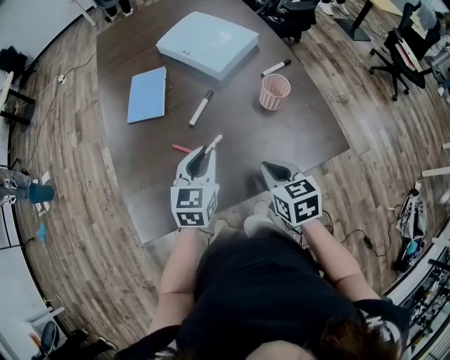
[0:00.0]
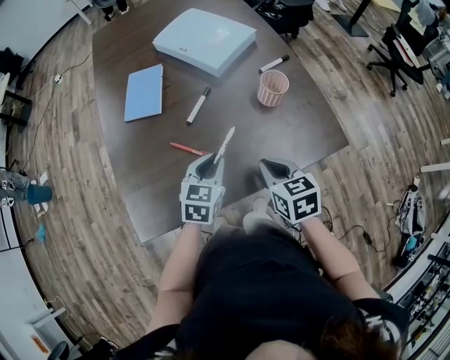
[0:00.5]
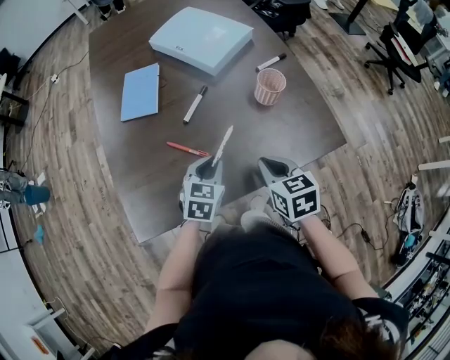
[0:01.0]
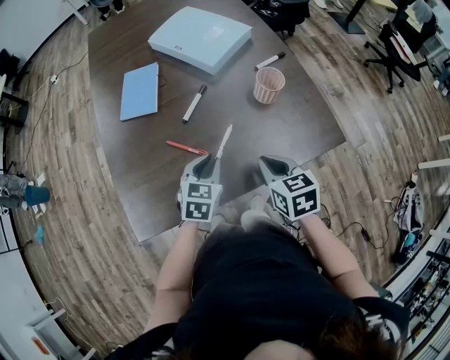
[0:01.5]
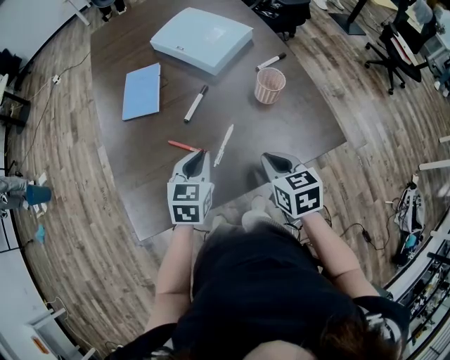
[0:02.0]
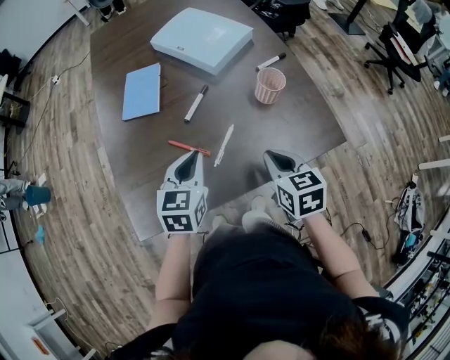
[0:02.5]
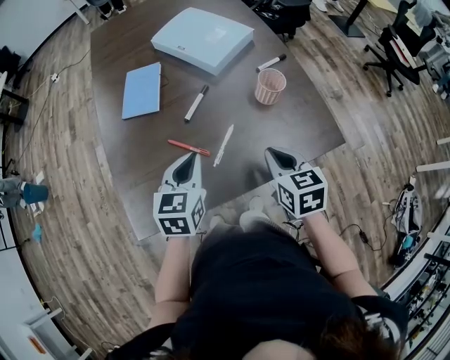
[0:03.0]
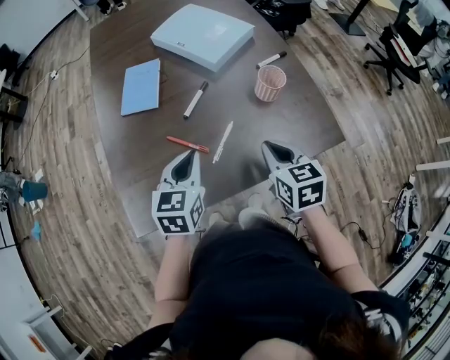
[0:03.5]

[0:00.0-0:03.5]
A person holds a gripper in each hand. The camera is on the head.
0:02.0 to 0:03.5: The left gripper moves roughly 5 cm.

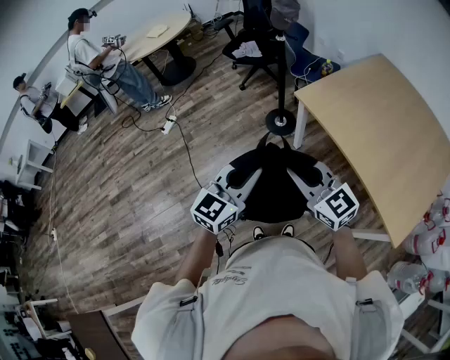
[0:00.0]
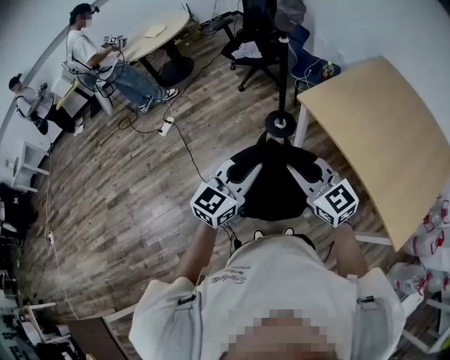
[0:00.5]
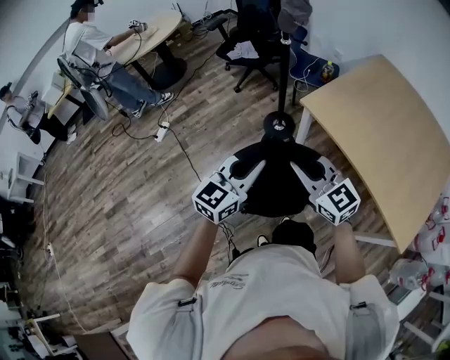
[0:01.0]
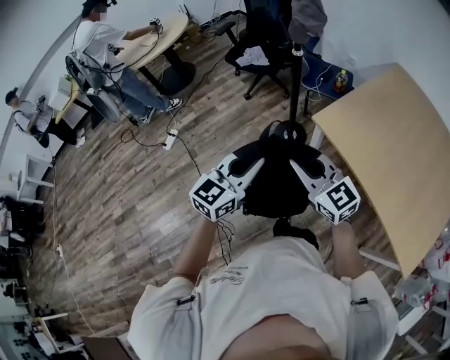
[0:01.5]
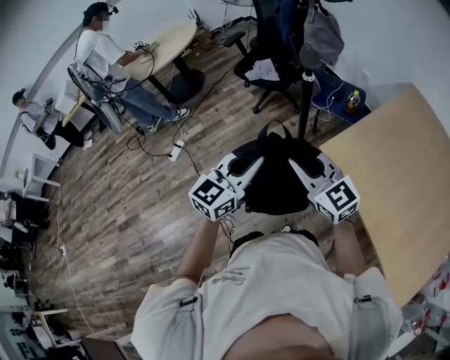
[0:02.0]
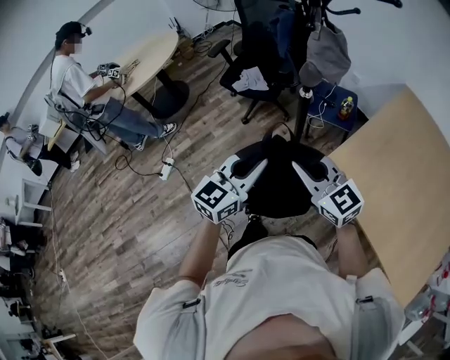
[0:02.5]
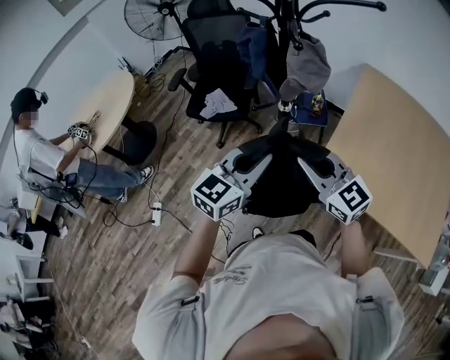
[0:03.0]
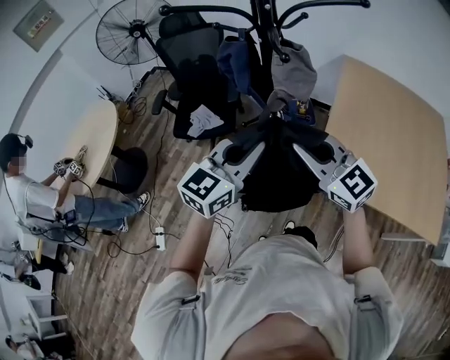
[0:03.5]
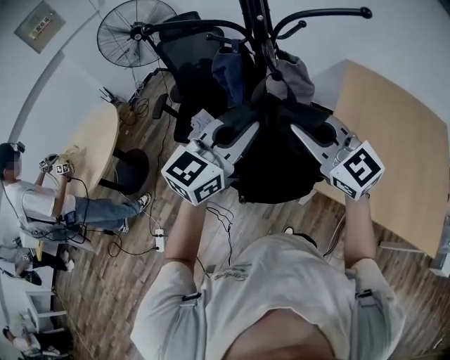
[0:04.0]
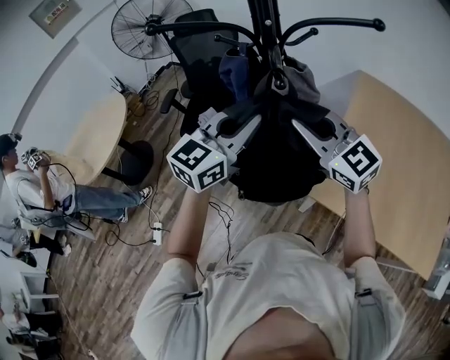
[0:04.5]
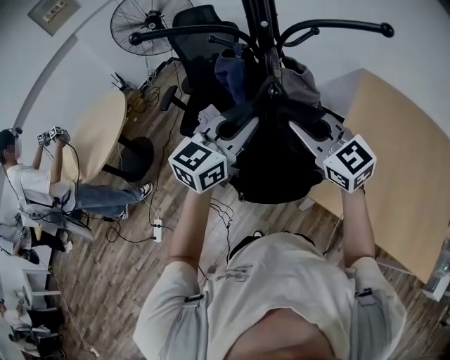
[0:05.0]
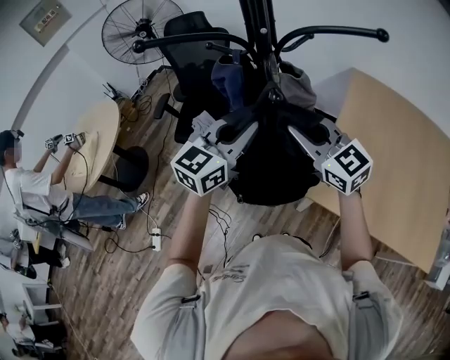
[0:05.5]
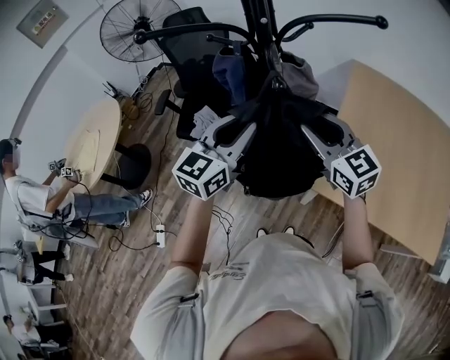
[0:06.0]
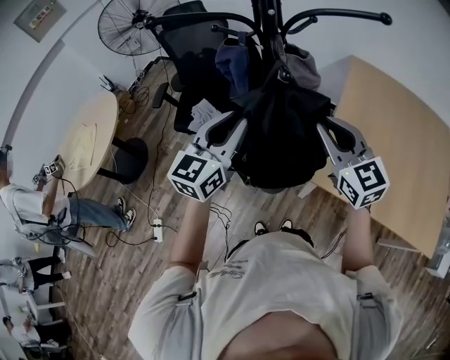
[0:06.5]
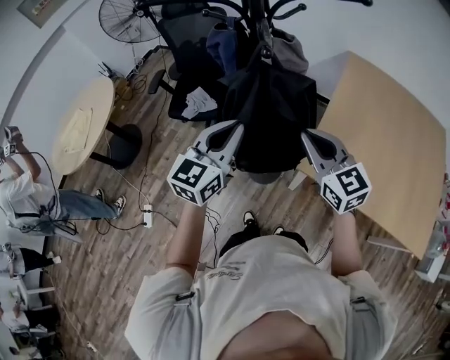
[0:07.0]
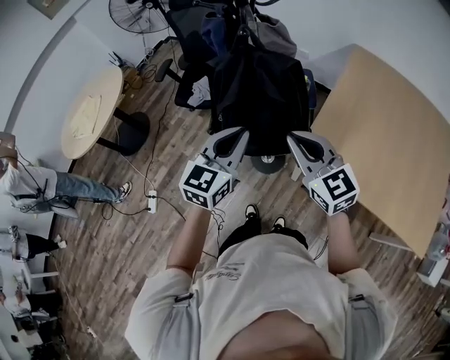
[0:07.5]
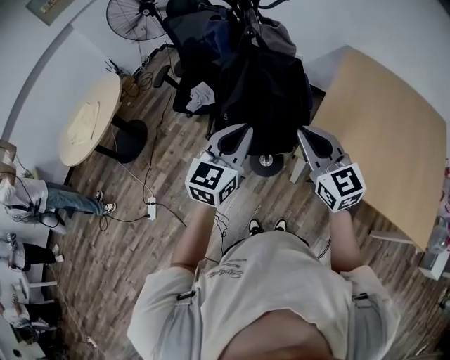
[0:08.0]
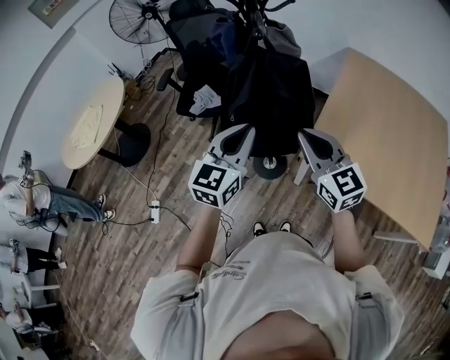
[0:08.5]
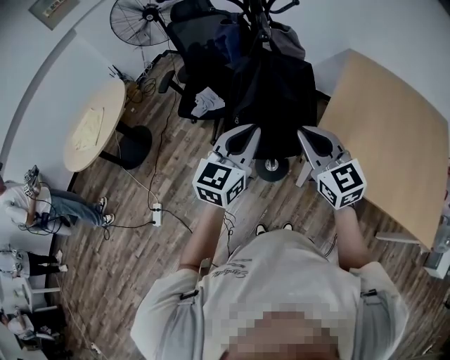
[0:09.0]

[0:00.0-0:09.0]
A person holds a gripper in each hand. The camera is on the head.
0:00.0 to 0:02.0: The grippers both shift forward by approximately 35 cm.
0:02.0 to 0:04.5: The left gripper changes place by approximately 35 cm, and rotates some 30 degrees. Meanwhile the right gripper moves roughly 30 cm, and changes its angle by approximately 30 degrees.
0:04.5 to 0:07.0: The left gripper shifts approximately 10 cm backward and downward; the right gripper goes approximately 10 cm downward, backward and to the right, swivels some 20 degrees, and opens and closes again.
0:07.0 to 0:09.0: The grippers both shift backward by some 5 cm.

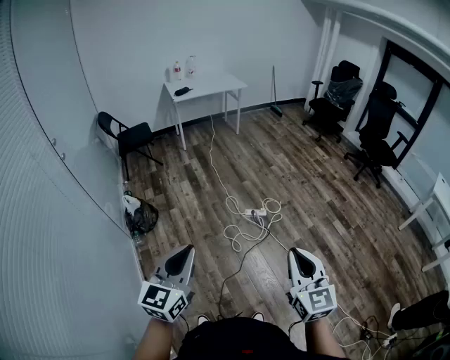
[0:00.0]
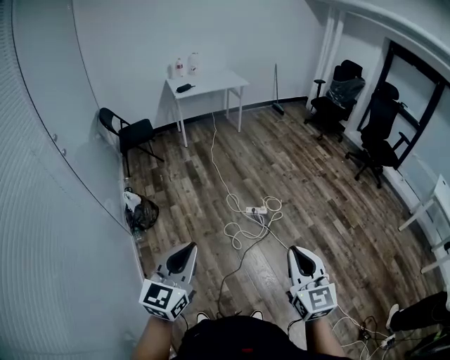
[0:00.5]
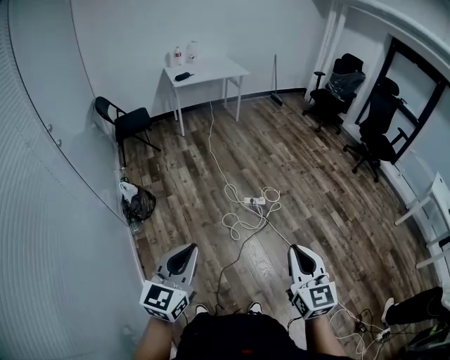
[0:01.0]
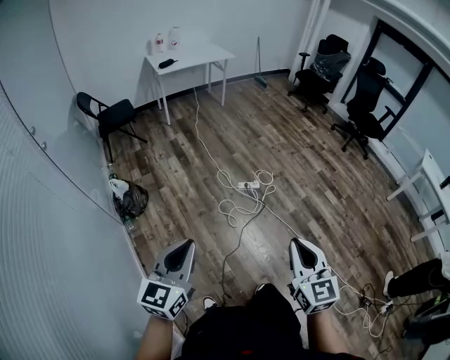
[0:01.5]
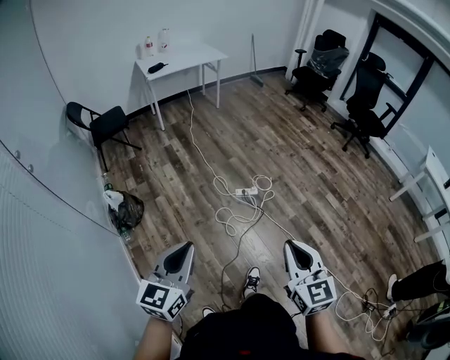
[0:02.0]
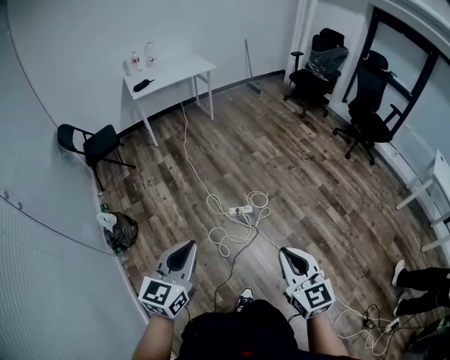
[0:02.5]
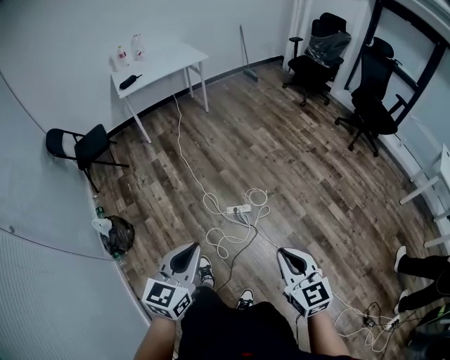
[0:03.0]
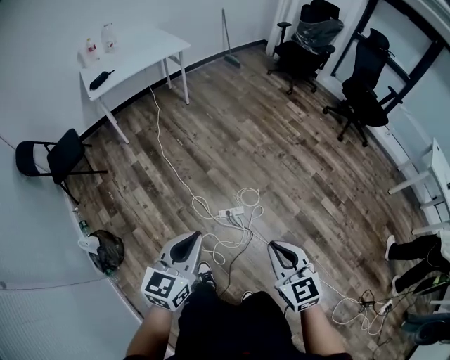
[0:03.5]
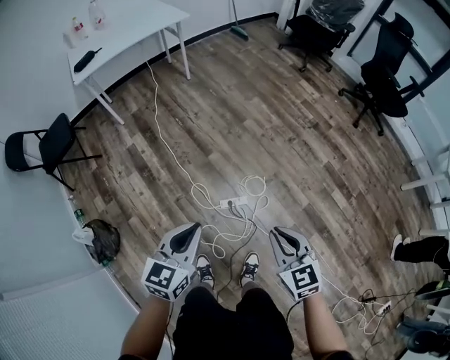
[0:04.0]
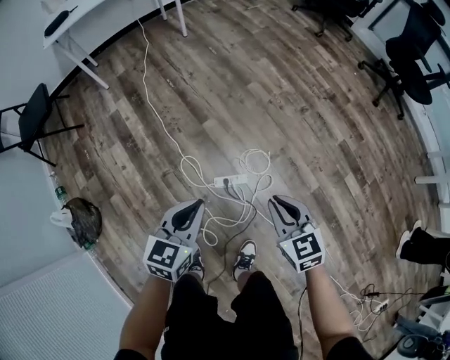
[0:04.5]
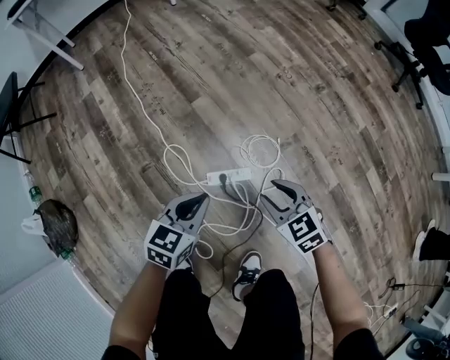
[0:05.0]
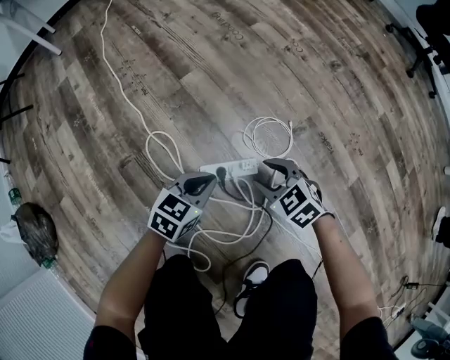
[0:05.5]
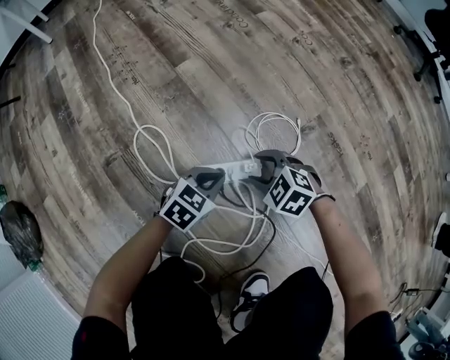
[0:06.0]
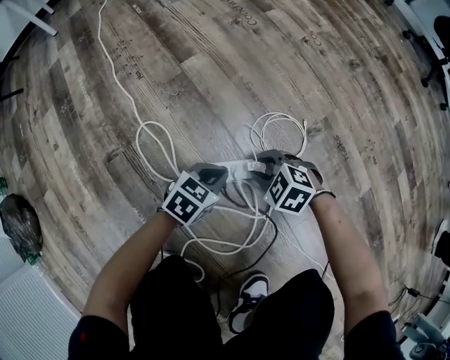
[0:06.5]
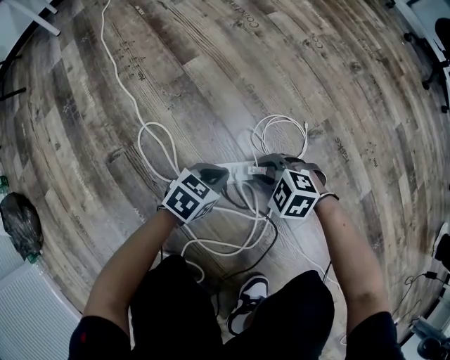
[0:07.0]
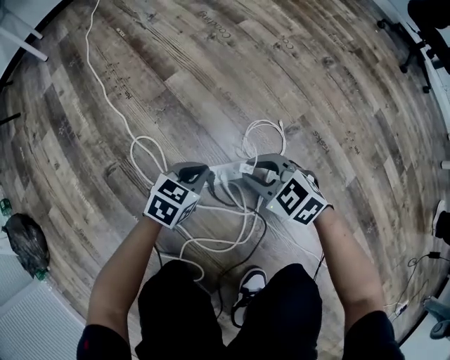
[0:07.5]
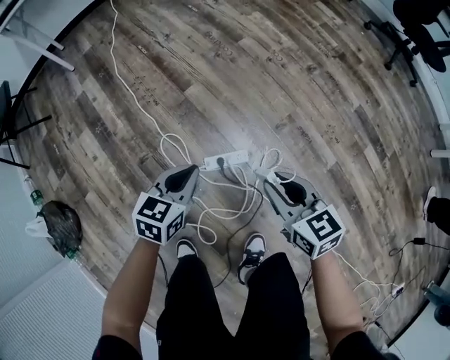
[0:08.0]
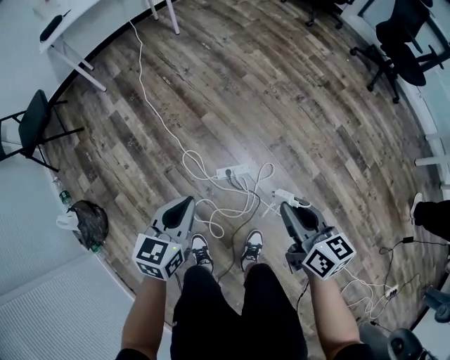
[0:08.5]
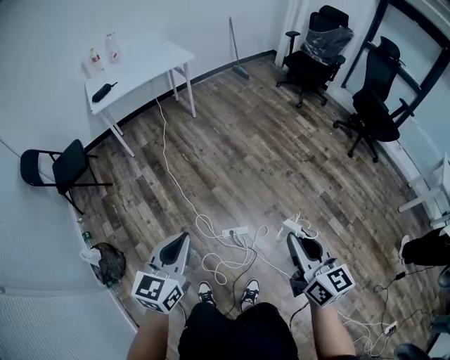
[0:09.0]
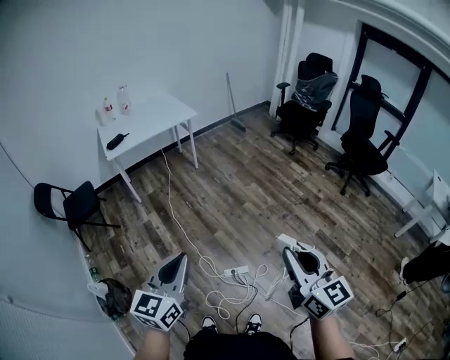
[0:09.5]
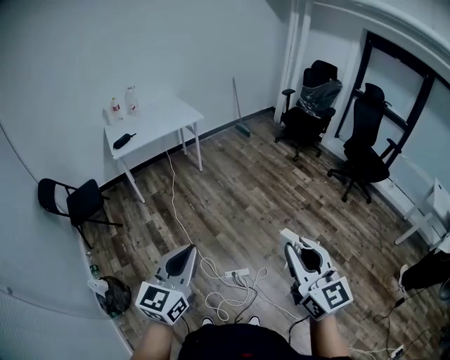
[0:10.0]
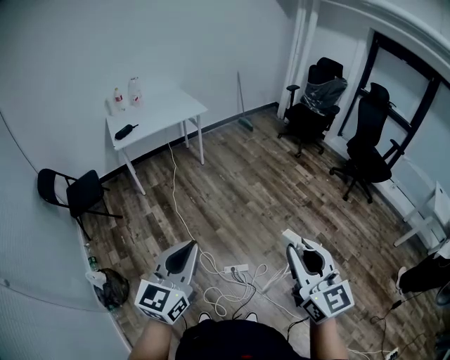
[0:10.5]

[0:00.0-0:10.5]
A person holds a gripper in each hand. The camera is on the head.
0:00.0 to 0:02.0: The two grippers go about 15 cm forward, downward and to the left.
0:02.0 to 0:04.0: Both grippers are carried forward, approximately 60 cm.
0:04.0 to 0:06.5: The two grippers go some 90 cm downward. The left gripper swivels approximately 30 degrees; the right gripper tilts its fingers approximately 30 degrees downward, and opens.
0:06.5 to 0:08.5: The grippers both shift upward by approximately 70 cm. The left gripper turns by some 30 degrees, while the right gripper angles its fingers upward, by about 40 degrees.
0:08.5 to 0:10.5: The two grippers go some 50 cm upward. The left gripper changes its angle by some 30 degrees; the right gripper rotates about 40 degrees.

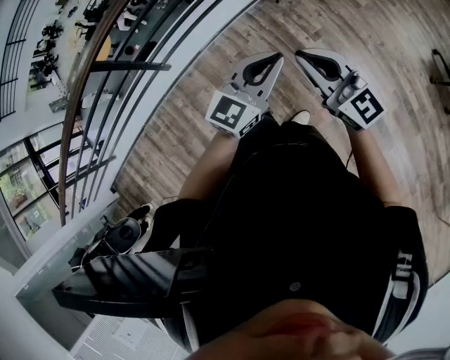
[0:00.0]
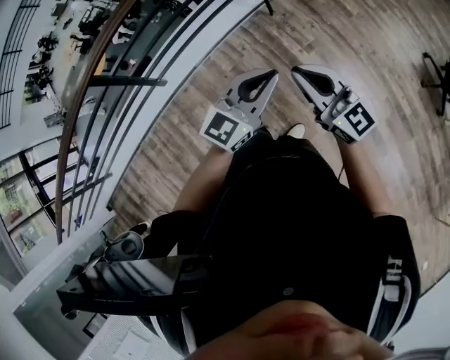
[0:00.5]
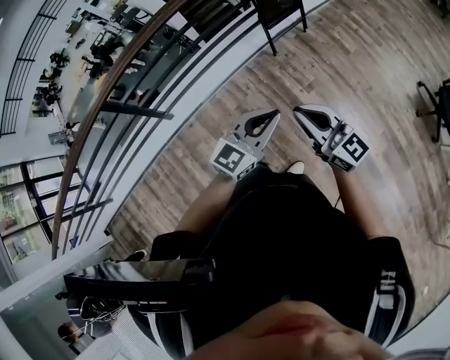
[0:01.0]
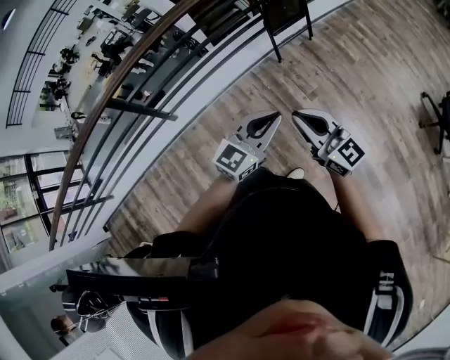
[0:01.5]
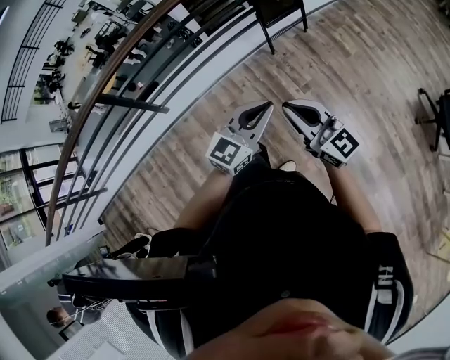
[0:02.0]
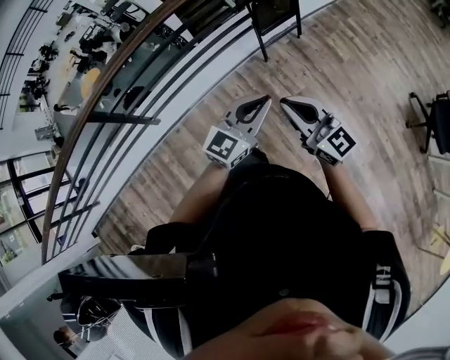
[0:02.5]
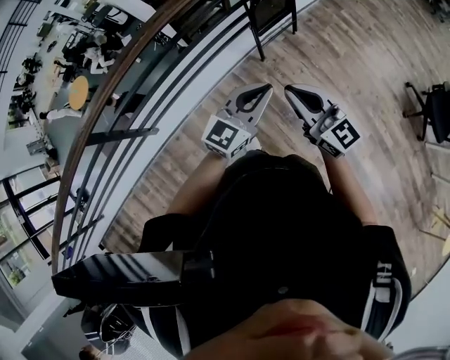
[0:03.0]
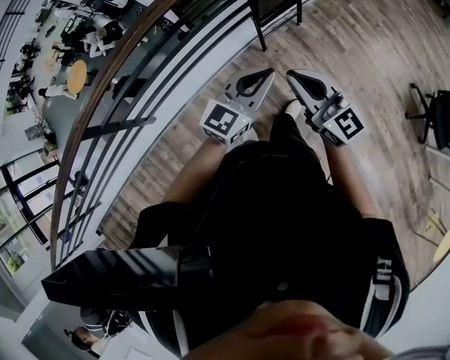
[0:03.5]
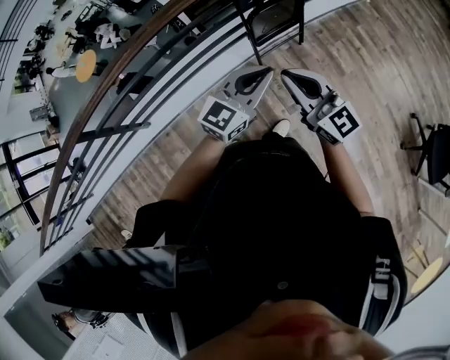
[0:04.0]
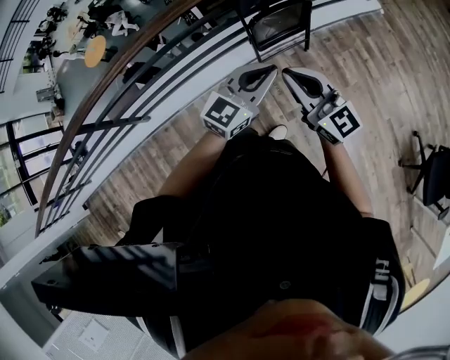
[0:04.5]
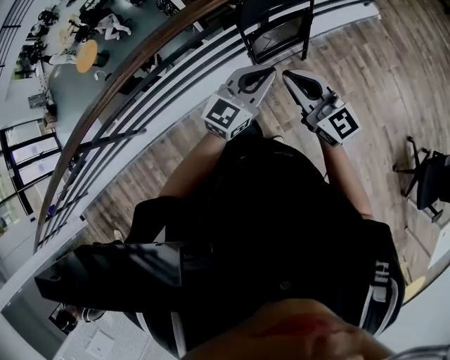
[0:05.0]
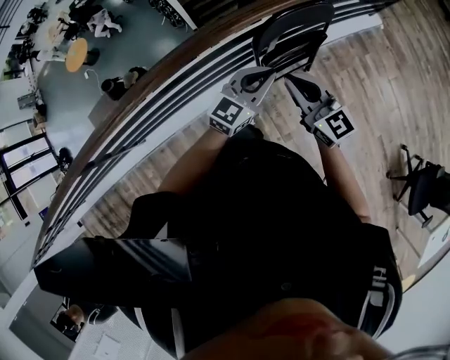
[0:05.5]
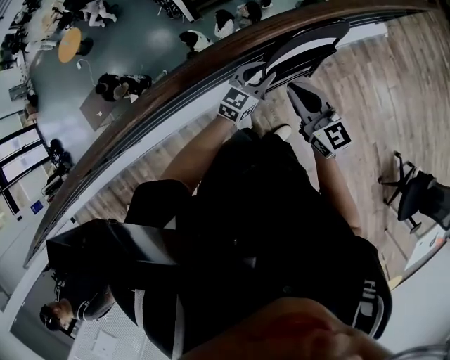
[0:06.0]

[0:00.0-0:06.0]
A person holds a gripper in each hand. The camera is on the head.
0:00.0 to 0:02.0: The grippers make only small movements.
0:02.0 to 0:04.0: Both grippers are carried forward, some 40 cm.
0:04.0 to 0:06.0: The left gripper moves forward and downward, approximately 40 cm, and opens, while the right gripper shifts some 35 cm forward.
